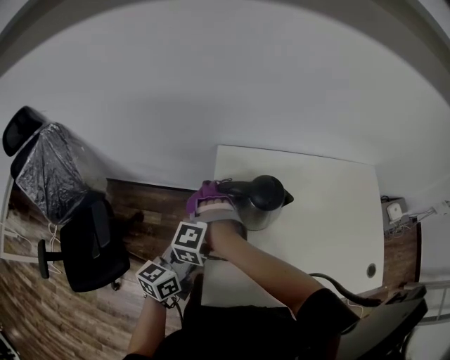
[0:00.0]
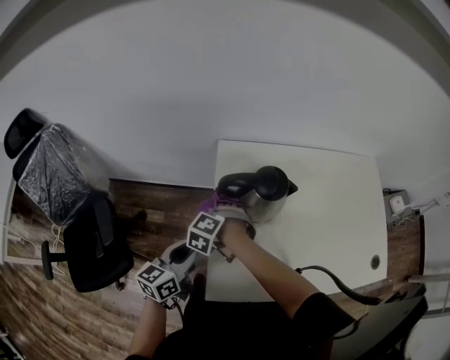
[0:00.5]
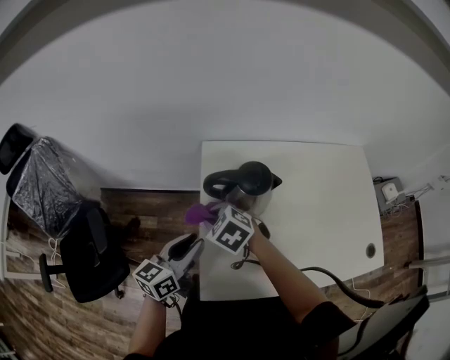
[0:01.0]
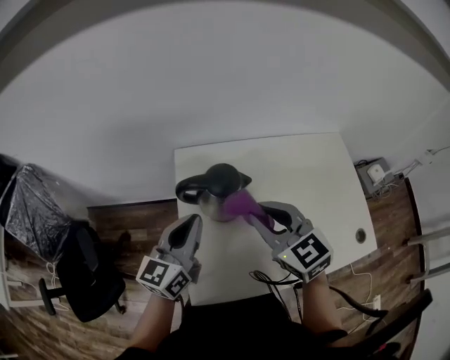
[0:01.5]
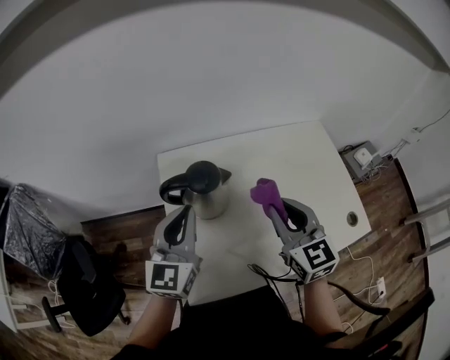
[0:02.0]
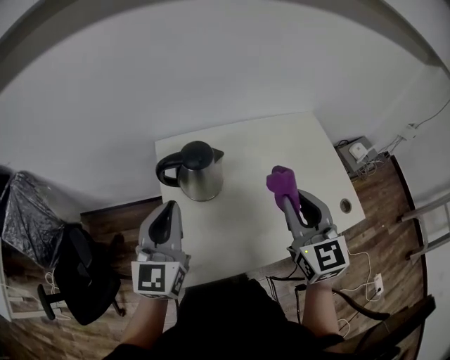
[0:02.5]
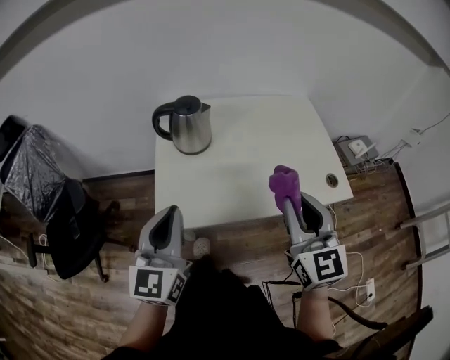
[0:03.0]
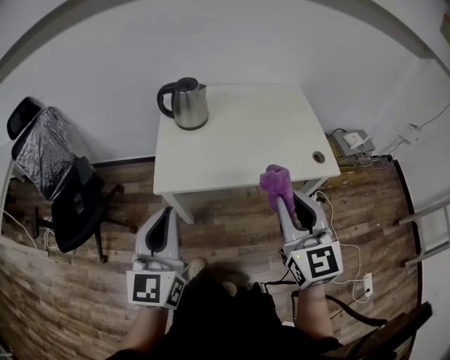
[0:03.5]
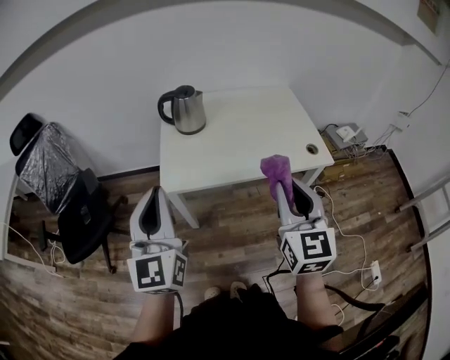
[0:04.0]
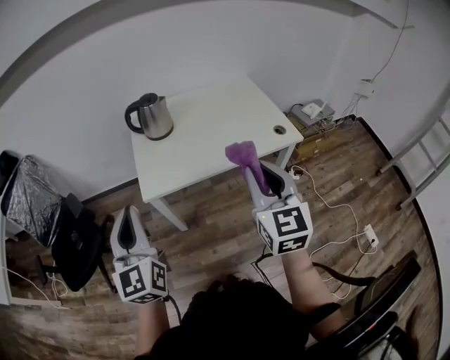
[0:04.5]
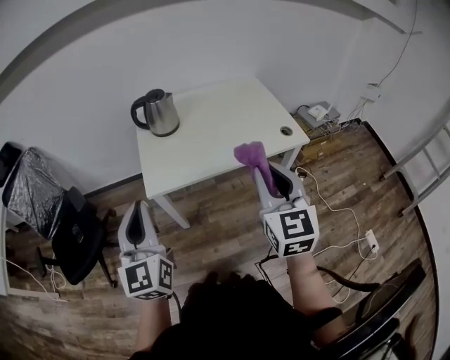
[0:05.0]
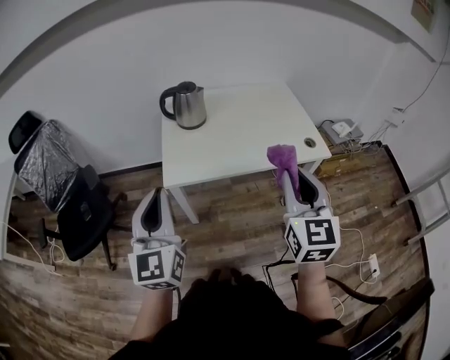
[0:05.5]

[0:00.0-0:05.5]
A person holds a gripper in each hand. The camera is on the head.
0:00.0 to 0:02.0: The right gripper moves approximately 35 cm, and rotates around the line of its fingers by approximately 80 degrees, clockwise from behind. The left gripper heads upward, covering some 15 cm, rotates some 40 degrees, and closes.
0:02.0 to 0:03.5: The grippers both shift backward by roughly 30 cm.
0:03.5 to 0:05.5: The left gripper ends up some 5 cm from where it was.

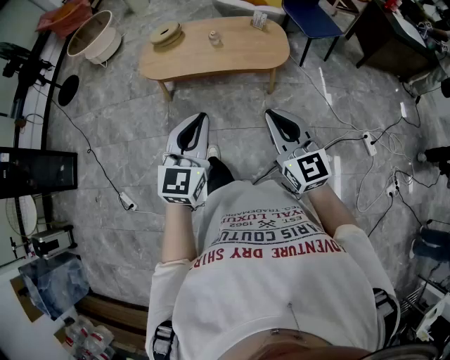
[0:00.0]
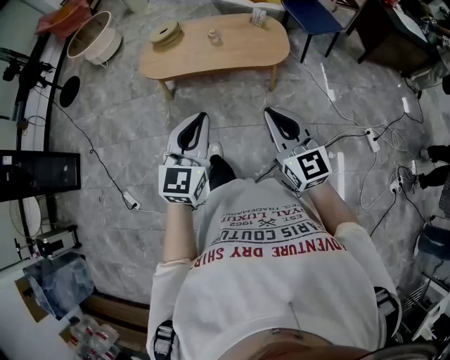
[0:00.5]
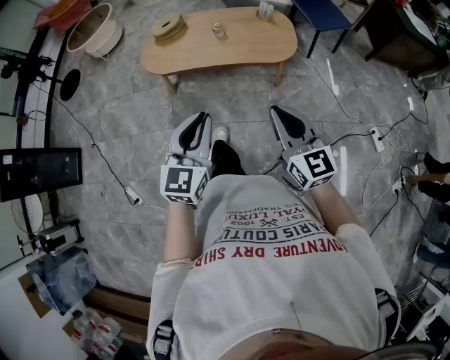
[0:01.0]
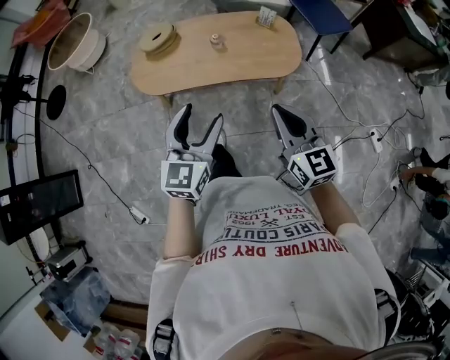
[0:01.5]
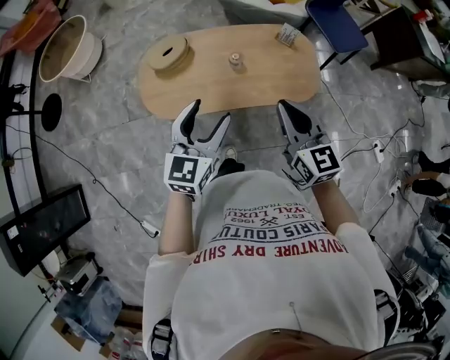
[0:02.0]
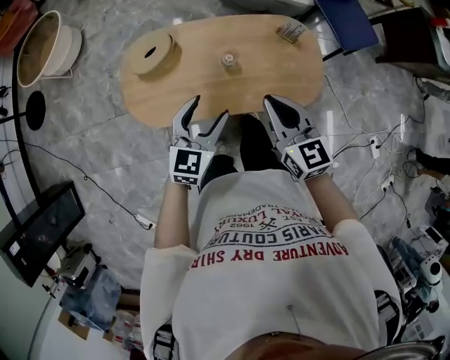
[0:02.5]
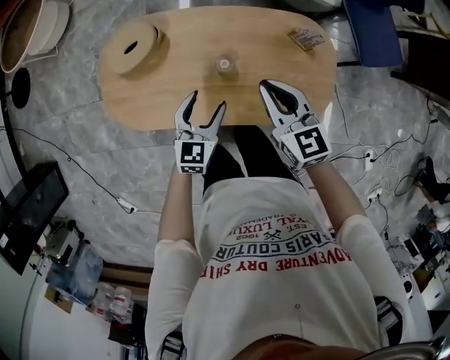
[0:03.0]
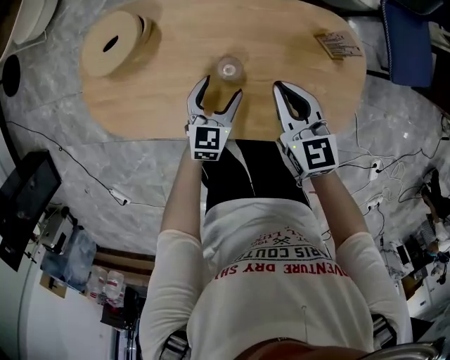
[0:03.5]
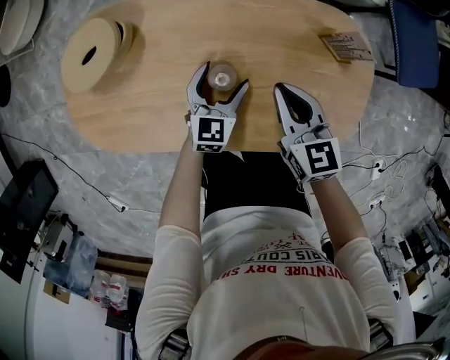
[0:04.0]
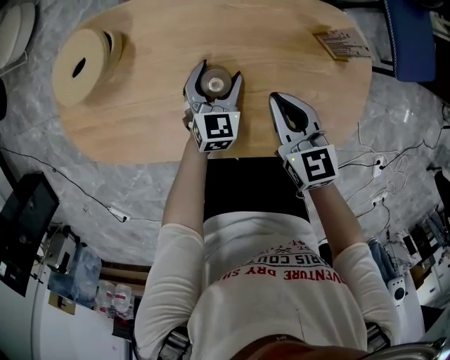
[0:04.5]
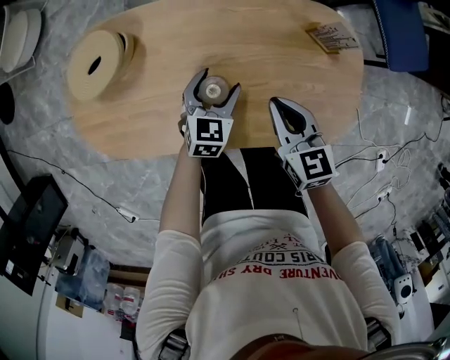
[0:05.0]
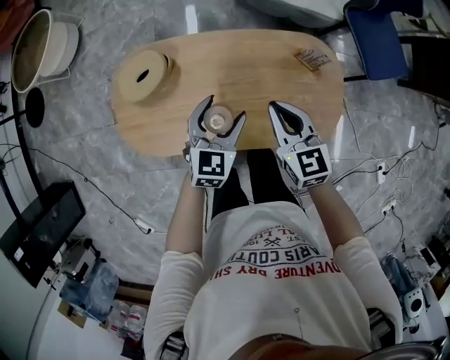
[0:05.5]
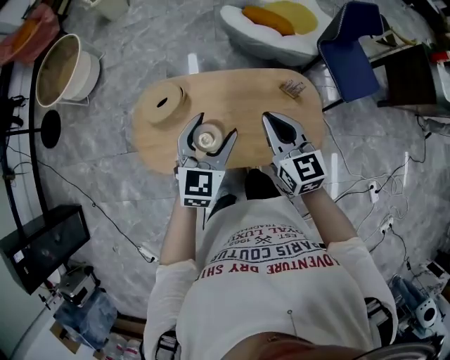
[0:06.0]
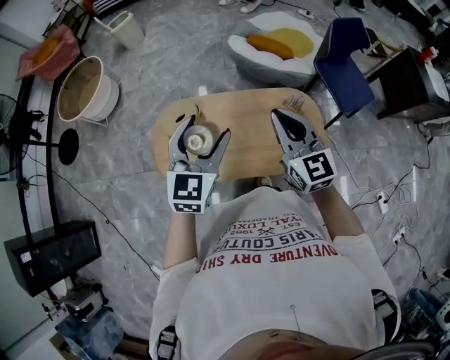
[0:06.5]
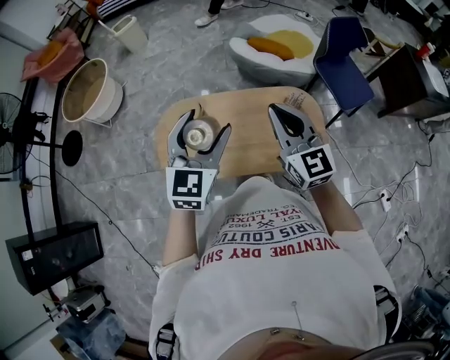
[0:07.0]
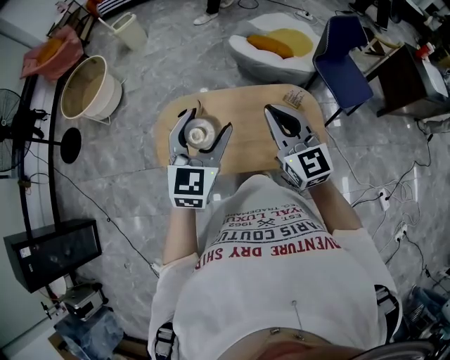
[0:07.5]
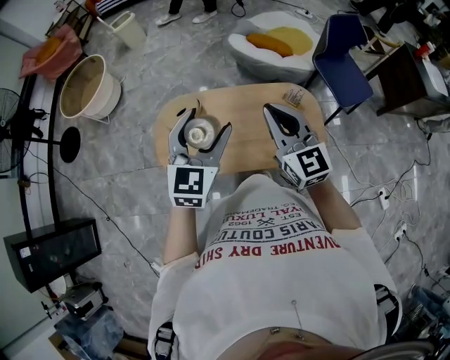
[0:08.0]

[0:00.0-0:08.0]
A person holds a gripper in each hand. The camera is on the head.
0:00.0 to 0:02.0: Both grippers are carried forward, roughly 40 cm. The left gripper opens up.
0:02.0 to 0:04.0: The two grippers go approximately 50 cm downward and forward. The right gripper rotates roughly 20 degrees.
0:04.0 to 0:06.0: The grippers both shift upward by roughly 40 cm.
0:06.0 to 0:08.0: Both grippers travel together upward and backward, approximately 15 cm.

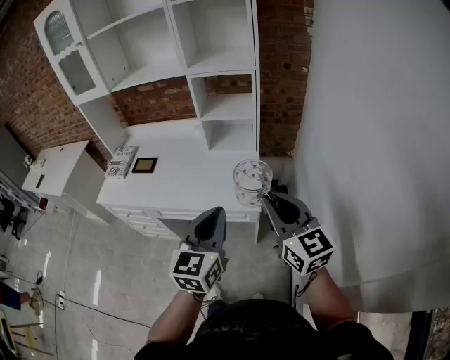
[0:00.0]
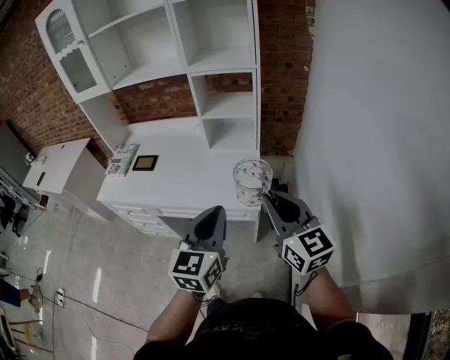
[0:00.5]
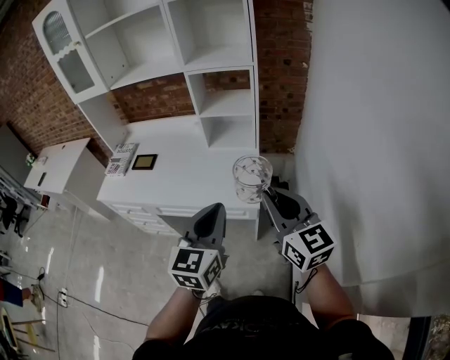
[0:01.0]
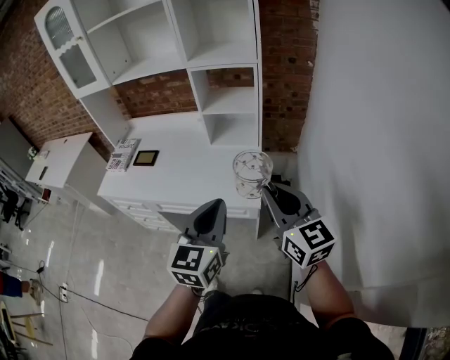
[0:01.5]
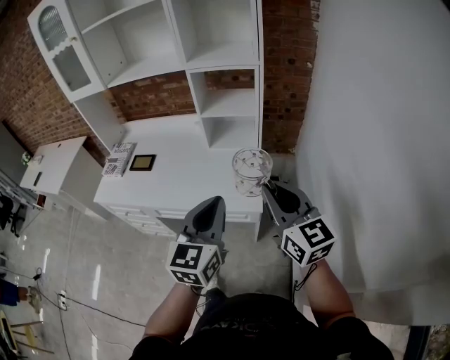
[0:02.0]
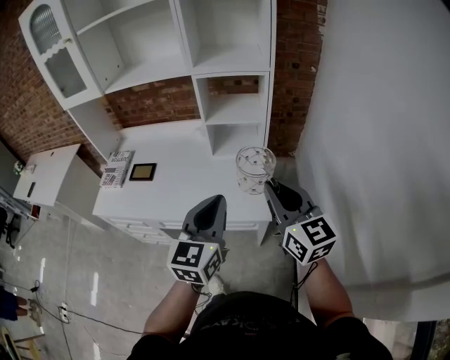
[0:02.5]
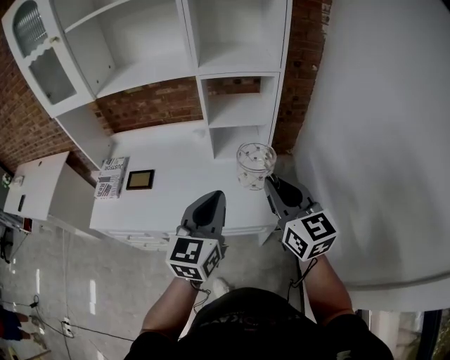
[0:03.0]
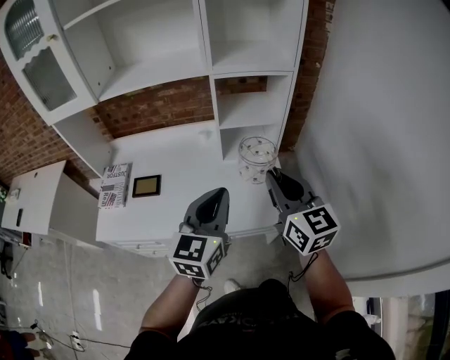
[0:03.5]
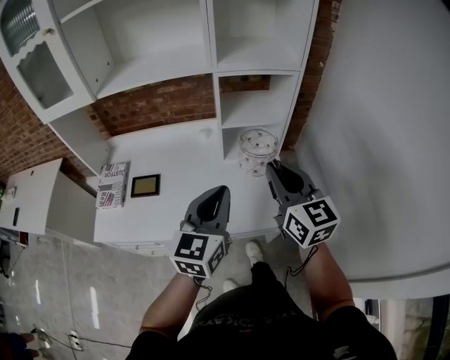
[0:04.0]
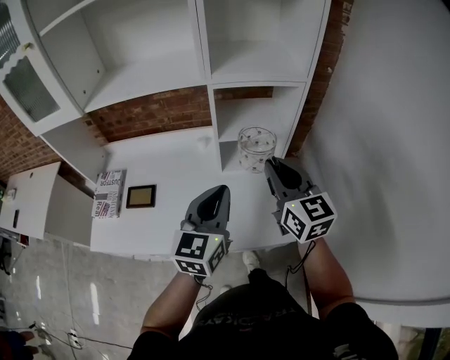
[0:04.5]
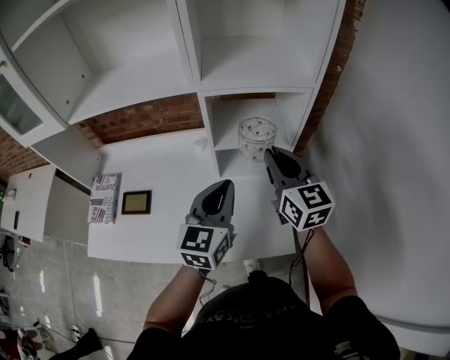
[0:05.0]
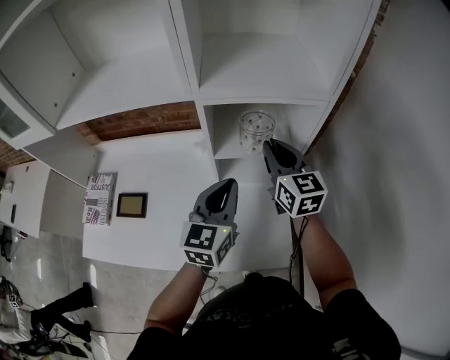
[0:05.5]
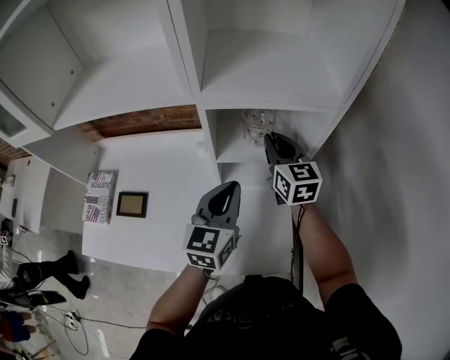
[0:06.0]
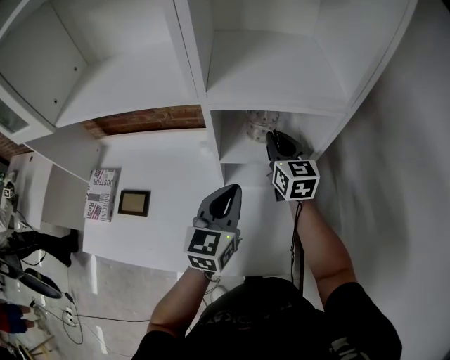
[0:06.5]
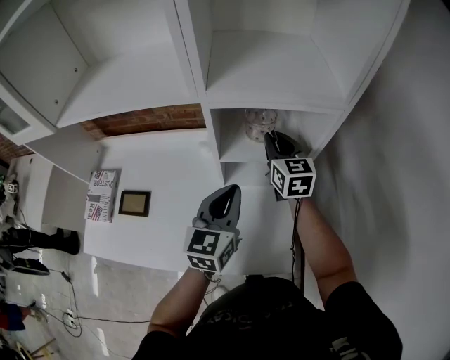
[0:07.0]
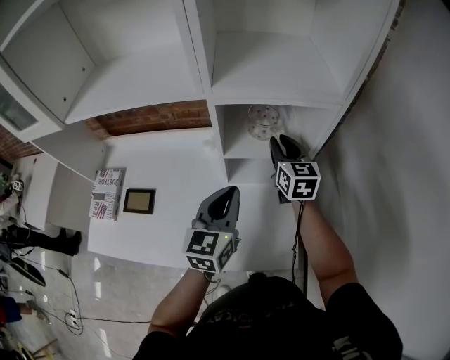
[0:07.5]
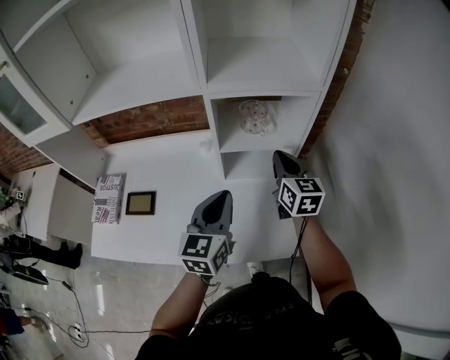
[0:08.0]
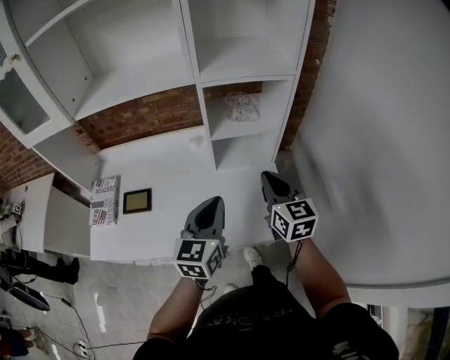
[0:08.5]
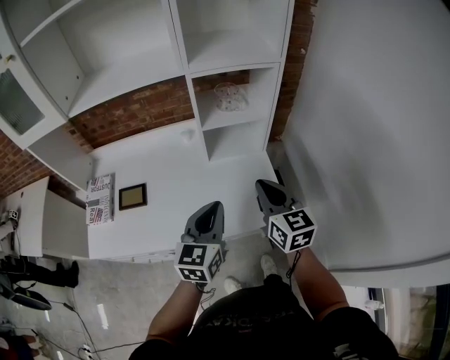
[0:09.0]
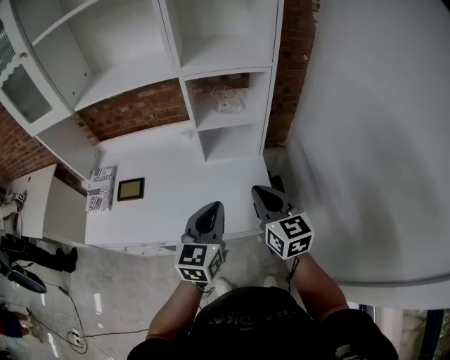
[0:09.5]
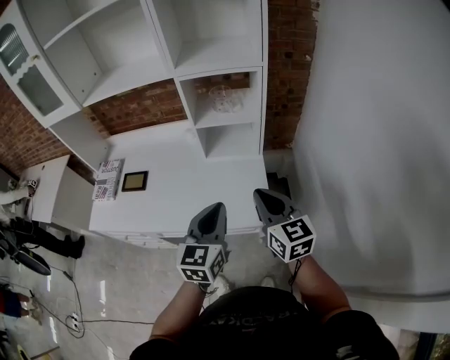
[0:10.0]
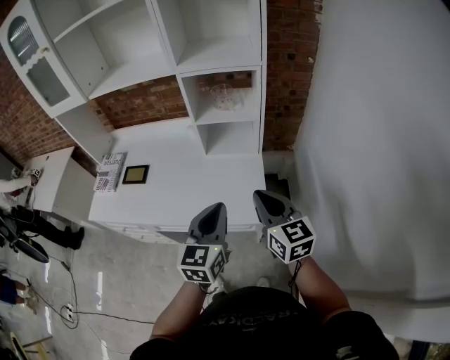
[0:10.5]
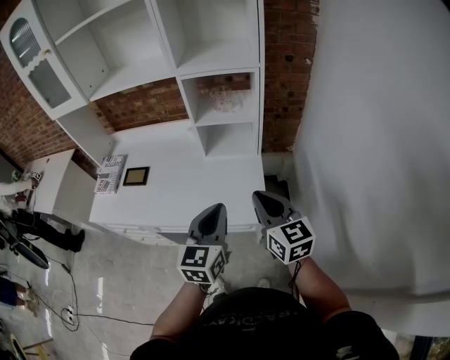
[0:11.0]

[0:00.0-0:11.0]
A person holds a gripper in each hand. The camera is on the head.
0:00.0 to 0:02.0: The grippers move only a little.
0:02.0 to 0:03.5: The two grippers go roughly 20 cm to the left and forward.
0:03.5 to 0:05.5: The grippers both shift forward by approximately 30 cm.
0:05.5 to 0:07.5: The right gripper travels downward and forward by approximately 10 cm.
0:07.5 to 0:09.0: The right gripper goes about 35 cm backward, and closes up; the left gripper heads backward, covering about 20 cm.
0:09.0 to 0:11.0: The grippers both shift to the right and backward by about 15 cm.

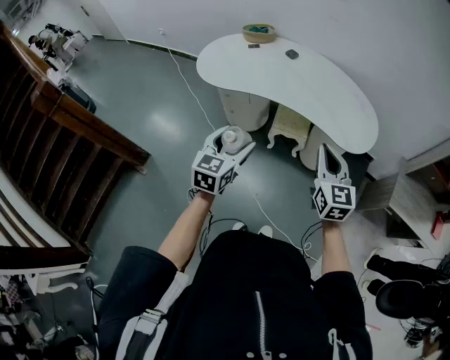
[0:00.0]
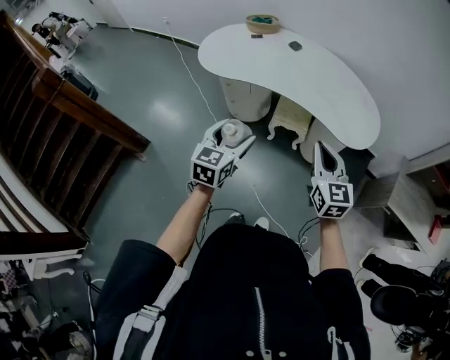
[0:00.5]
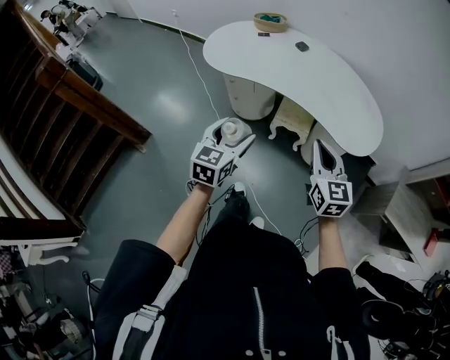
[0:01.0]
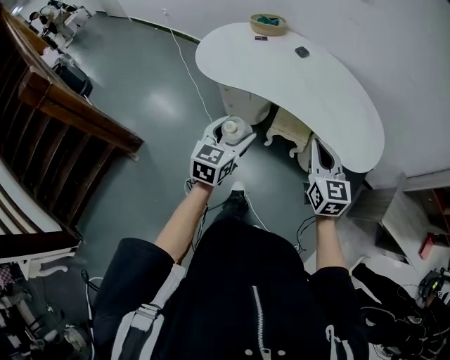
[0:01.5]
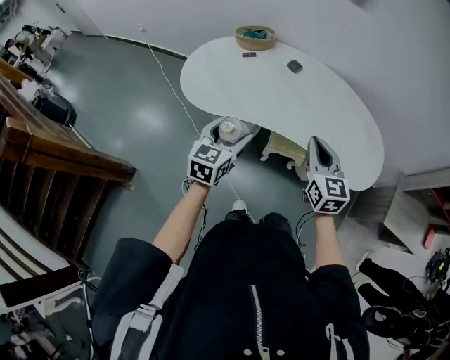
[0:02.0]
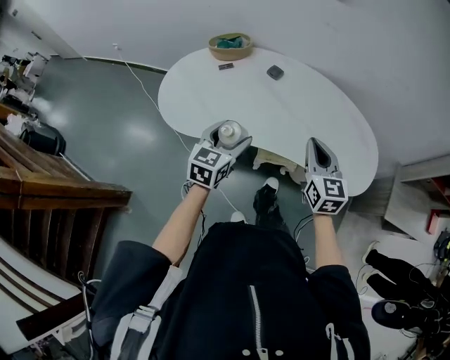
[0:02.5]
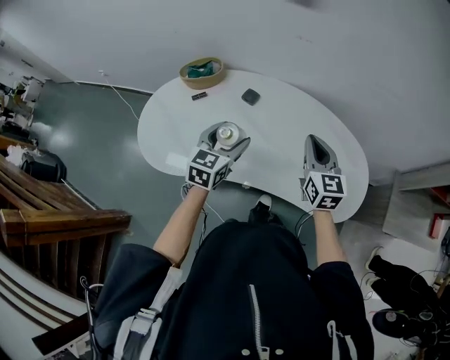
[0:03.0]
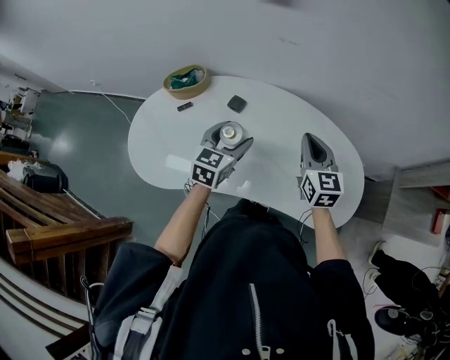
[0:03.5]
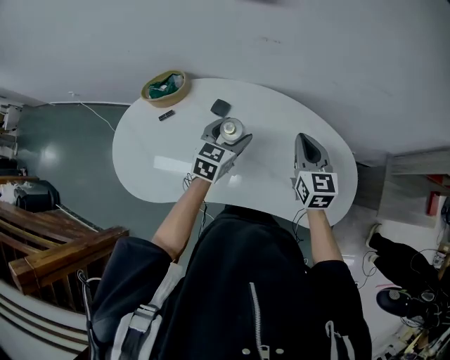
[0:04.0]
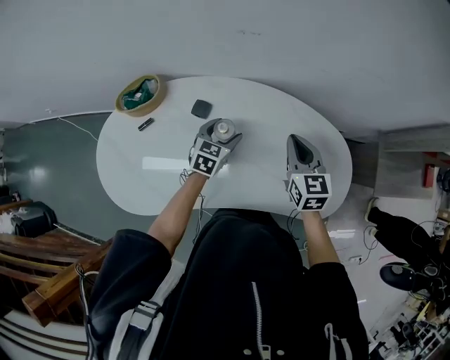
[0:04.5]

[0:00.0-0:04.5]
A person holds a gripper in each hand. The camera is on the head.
0:00.0 to 0:02.0: Both grippers move forward, approximately 25 cm.
0:02.0 to 0:04.5: The pair of grippers is taken forward, roughly 50 cm. The right gripper turns by roughly 20 degrees. The left gripper swivels about 30 degrees.
